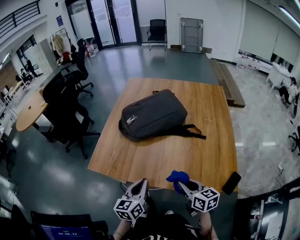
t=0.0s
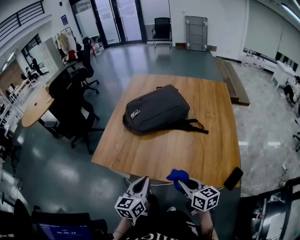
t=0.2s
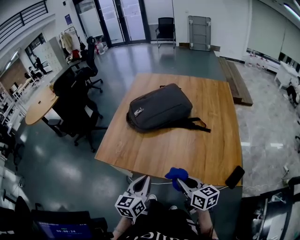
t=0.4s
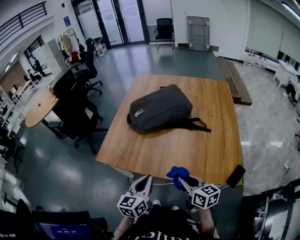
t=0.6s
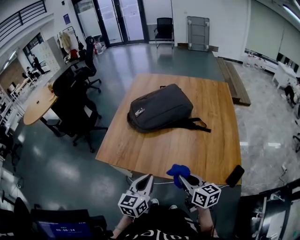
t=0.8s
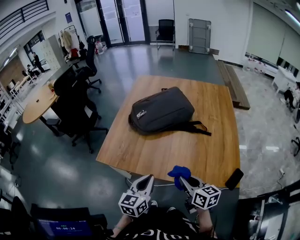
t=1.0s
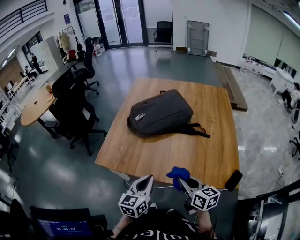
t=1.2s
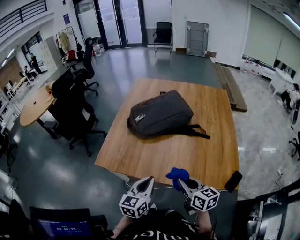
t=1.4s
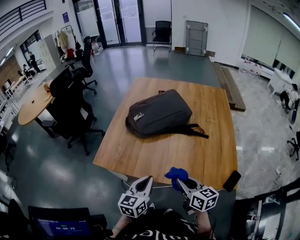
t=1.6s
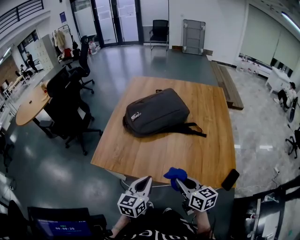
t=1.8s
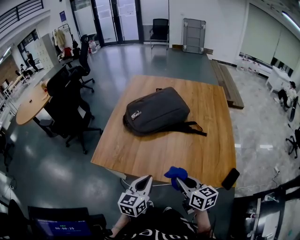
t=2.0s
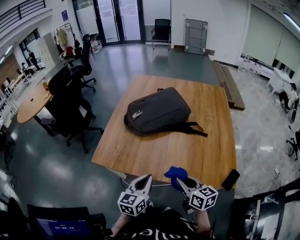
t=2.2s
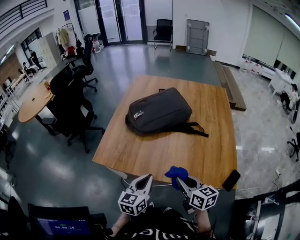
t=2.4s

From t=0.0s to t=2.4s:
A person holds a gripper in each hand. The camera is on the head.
From t=0.0s to t=1.2s: The right gripper changes place by roughly 5 cm.
From t=1.2s to t=2.4s: There are only small adjustments of the grippers.

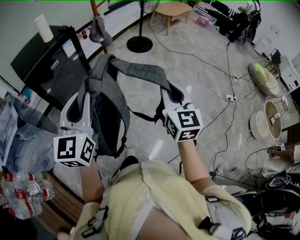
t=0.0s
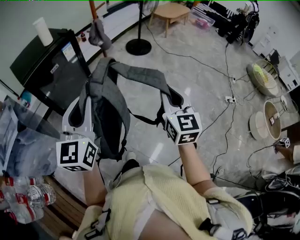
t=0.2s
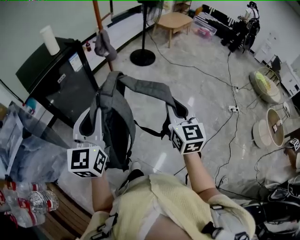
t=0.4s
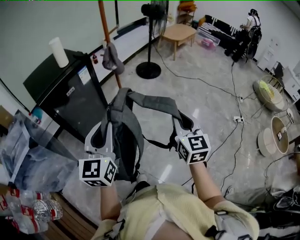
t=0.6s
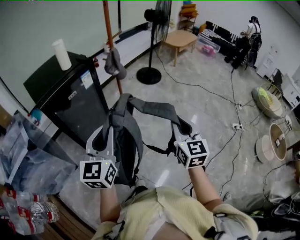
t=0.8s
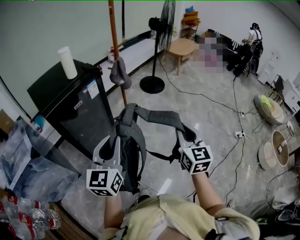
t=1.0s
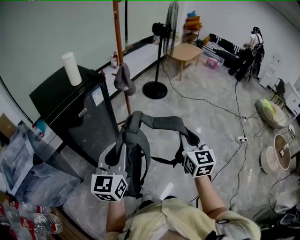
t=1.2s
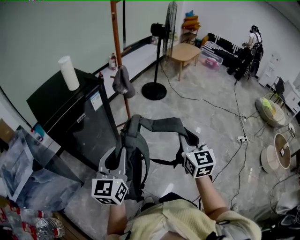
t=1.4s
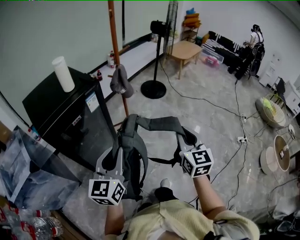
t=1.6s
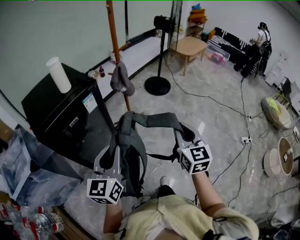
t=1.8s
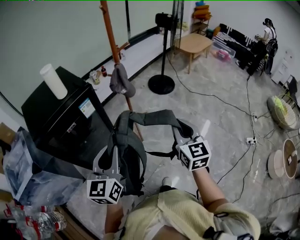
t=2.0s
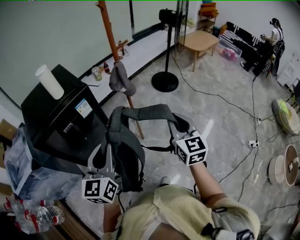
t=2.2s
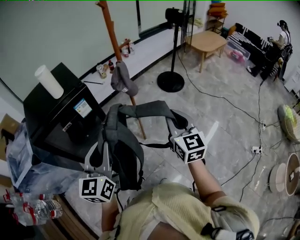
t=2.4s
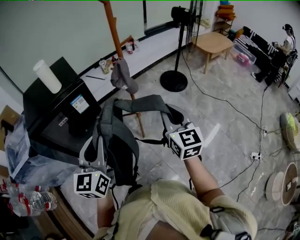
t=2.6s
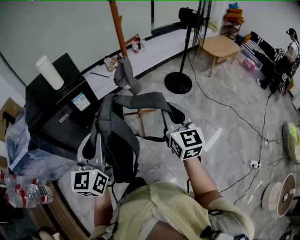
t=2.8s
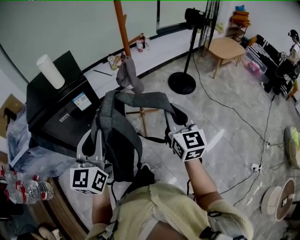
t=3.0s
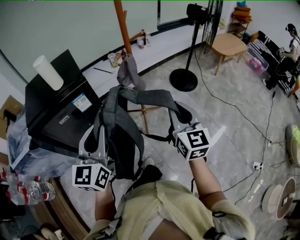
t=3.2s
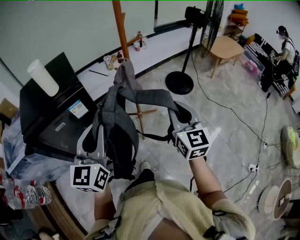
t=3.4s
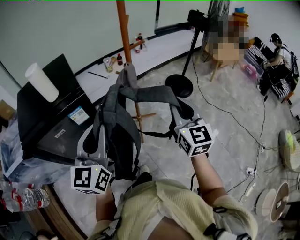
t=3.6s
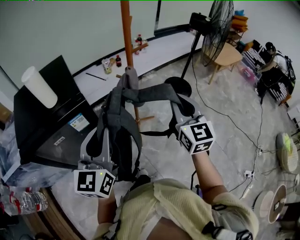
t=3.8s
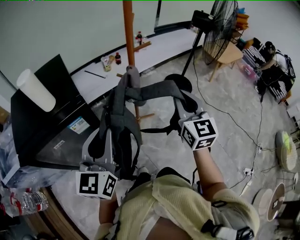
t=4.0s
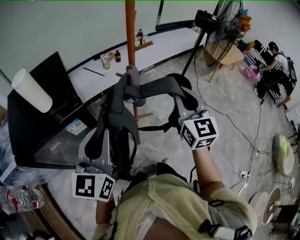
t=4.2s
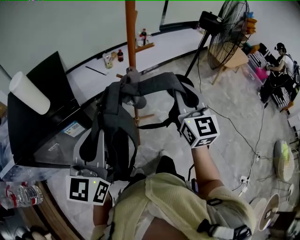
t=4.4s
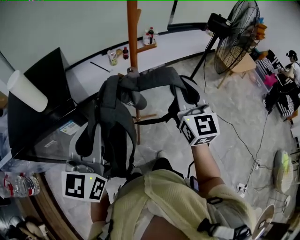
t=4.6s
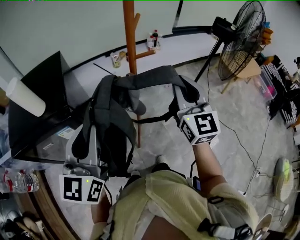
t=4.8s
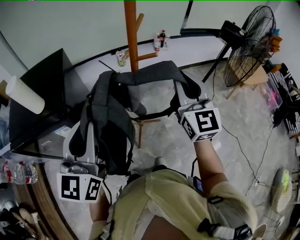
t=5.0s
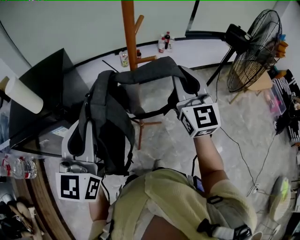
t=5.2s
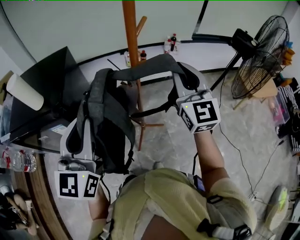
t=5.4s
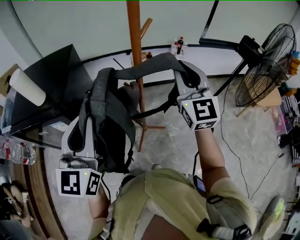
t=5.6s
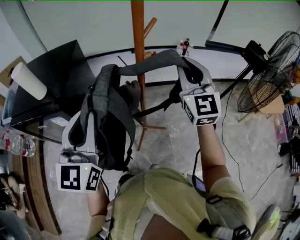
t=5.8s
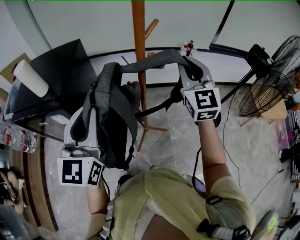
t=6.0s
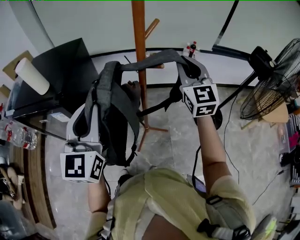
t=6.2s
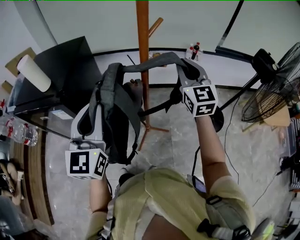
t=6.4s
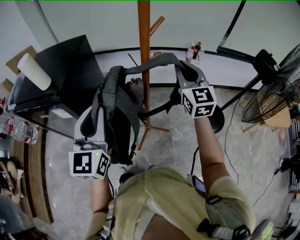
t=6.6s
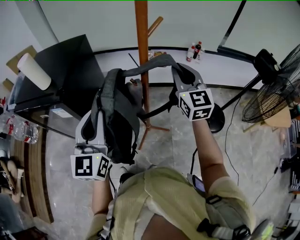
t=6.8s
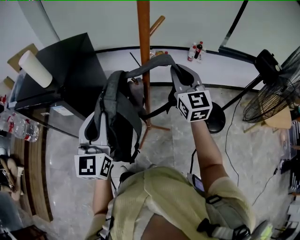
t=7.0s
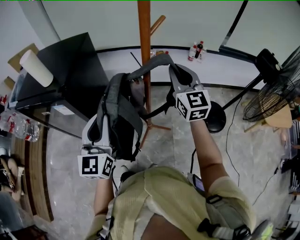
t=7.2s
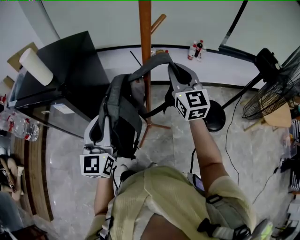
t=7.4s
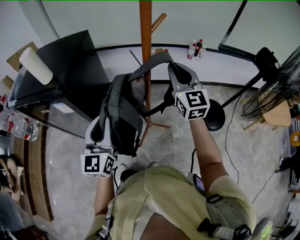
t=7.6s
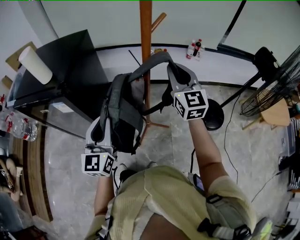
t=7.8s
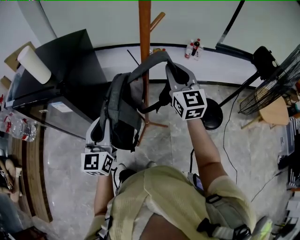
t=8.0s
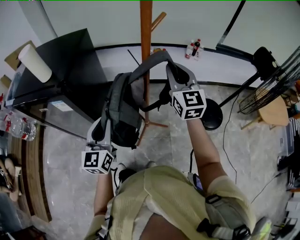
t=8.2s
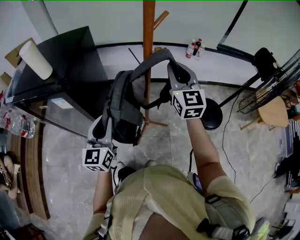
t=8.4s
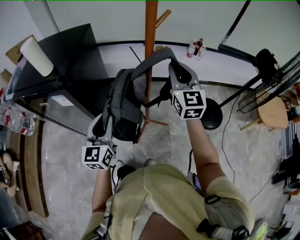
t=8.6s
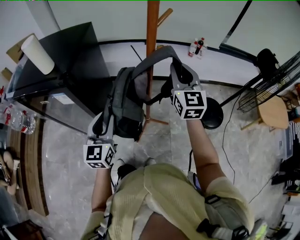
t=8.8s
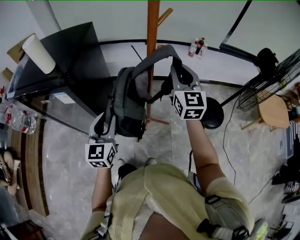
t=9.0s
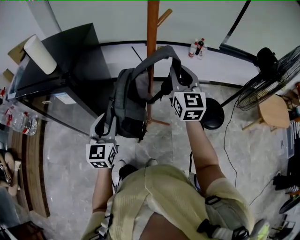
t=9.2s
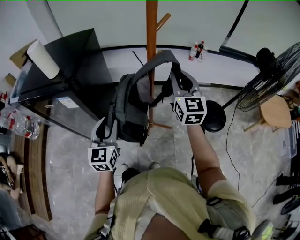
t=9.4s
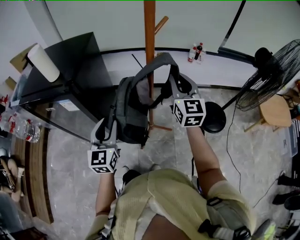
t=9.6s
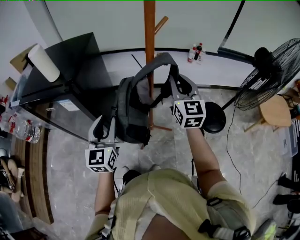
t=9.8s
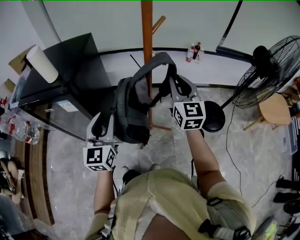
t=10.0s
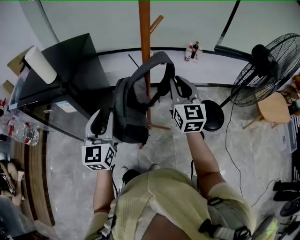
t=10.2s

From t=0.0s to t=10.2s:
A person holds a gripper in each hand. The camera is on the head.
From t=0.0s to t=1.4s: The left gripper heads forward, to the left and downward, covering some 15 cm; the right gripper shifts approximately 15 cm forward and to the left.
From t=1.4s to t=3.0s: The right gripper ends up approximately 25 cm from where it was, and turns by about 30 degrees. Meanwhile the left gripper changes place by some 15 cm, and changes its angle by some 30 degrees.
From t=3.0s to t=4.4s: Both grippers move forward, approximately 20 cm.
From t=4.4s to t=5.8s: The left gripper changes place by approximately 10 cm, and swivels some 30 degrees. Meanwhile the right gripper moves about 20 cm, and swivels approximately 30 degrees.
From t=5.8s to t=7.2s: The grippers both shift downward by approximately 10 cm.
From t=7.2s to t=8.8s: The left gripper heads downward, covering approximately 10 cm.
From t=8.8s to t=10.2s: The left gripper moves upward, about 5 cm.

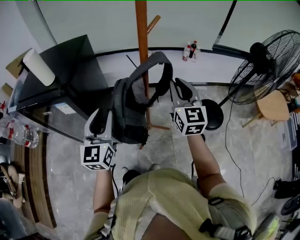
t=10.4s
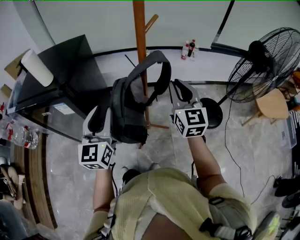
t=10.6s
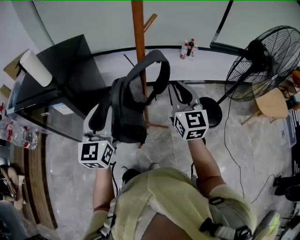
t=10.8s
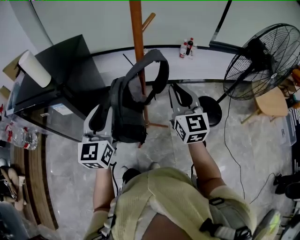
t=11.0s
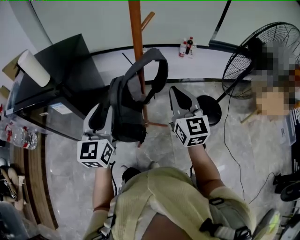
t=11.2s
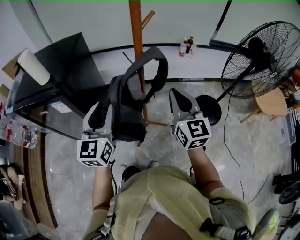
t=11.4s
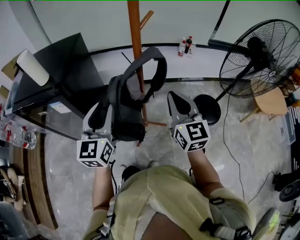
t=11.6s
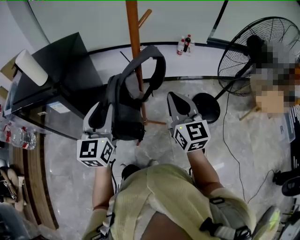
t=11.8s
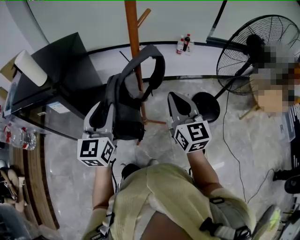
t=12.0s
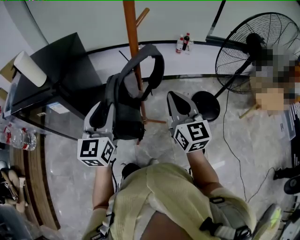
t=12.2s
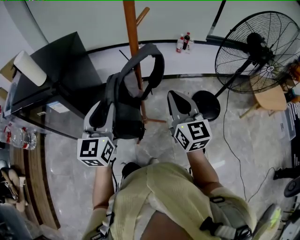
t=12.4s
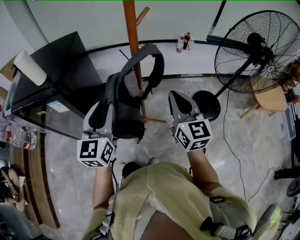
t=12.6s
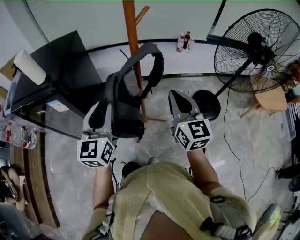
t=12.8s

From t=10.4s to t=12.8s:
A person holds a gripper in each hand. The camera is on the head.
From t=10.4s to t=11.6s: The right gripper shifts some 5 cm backward.
From t=11.6s to t=12.8s: The grippers make only small movements.

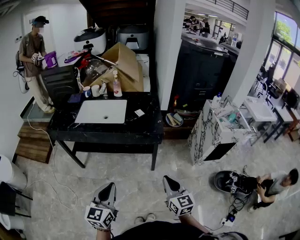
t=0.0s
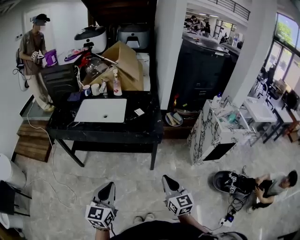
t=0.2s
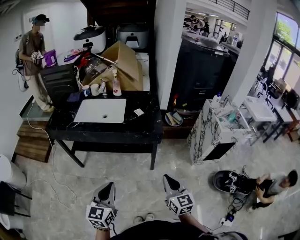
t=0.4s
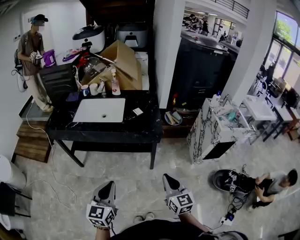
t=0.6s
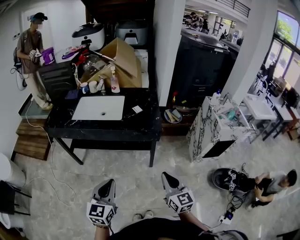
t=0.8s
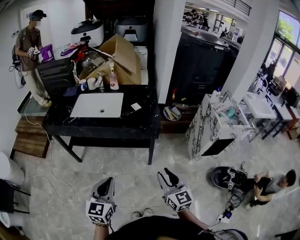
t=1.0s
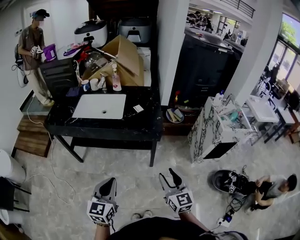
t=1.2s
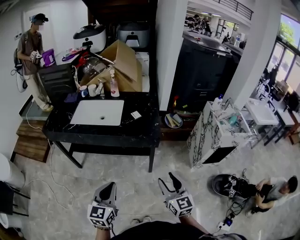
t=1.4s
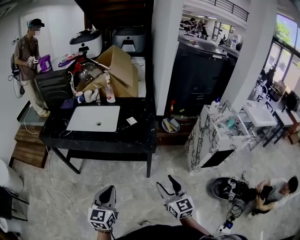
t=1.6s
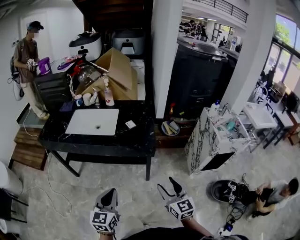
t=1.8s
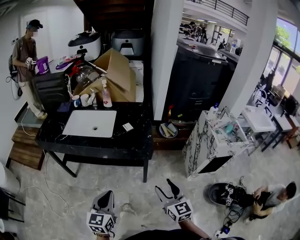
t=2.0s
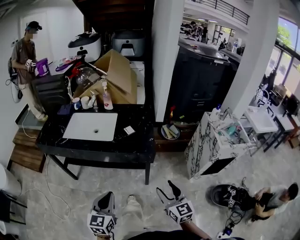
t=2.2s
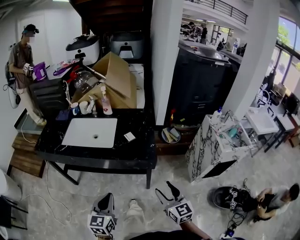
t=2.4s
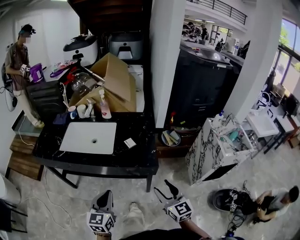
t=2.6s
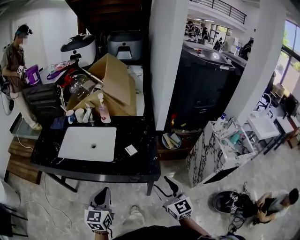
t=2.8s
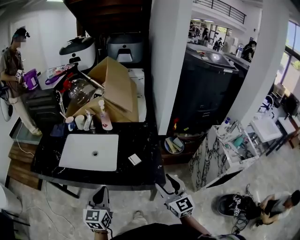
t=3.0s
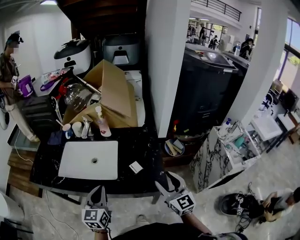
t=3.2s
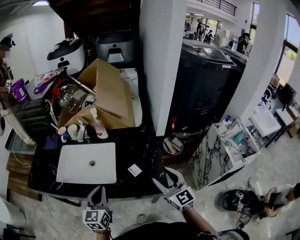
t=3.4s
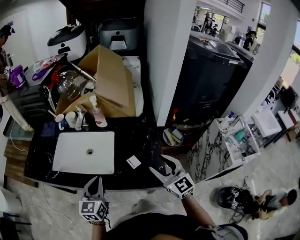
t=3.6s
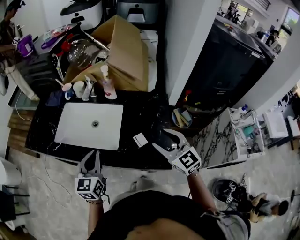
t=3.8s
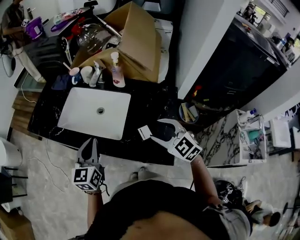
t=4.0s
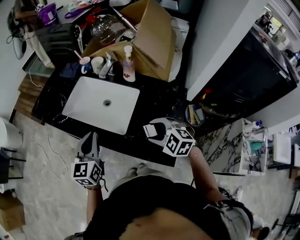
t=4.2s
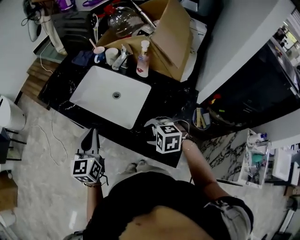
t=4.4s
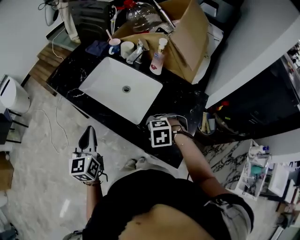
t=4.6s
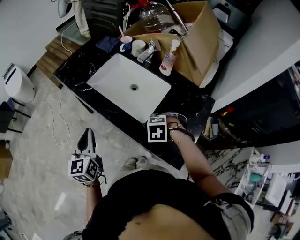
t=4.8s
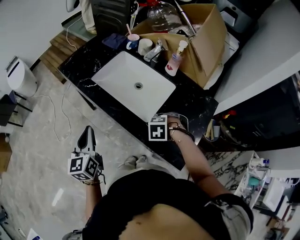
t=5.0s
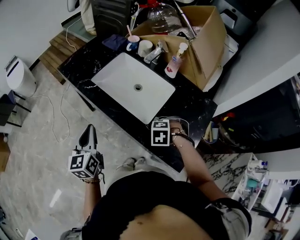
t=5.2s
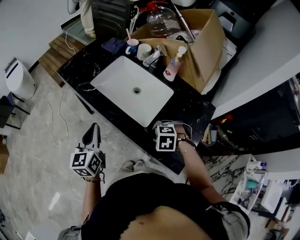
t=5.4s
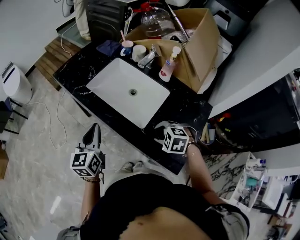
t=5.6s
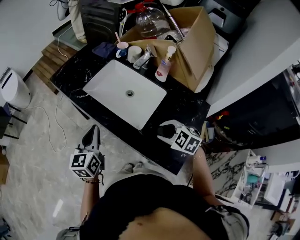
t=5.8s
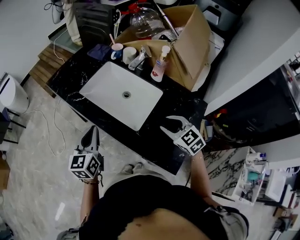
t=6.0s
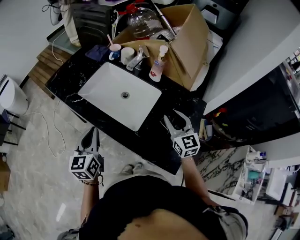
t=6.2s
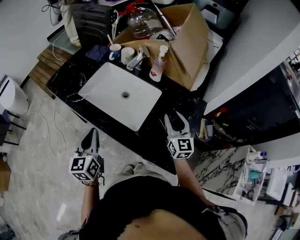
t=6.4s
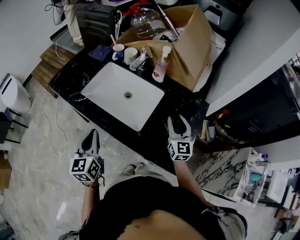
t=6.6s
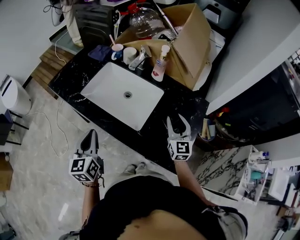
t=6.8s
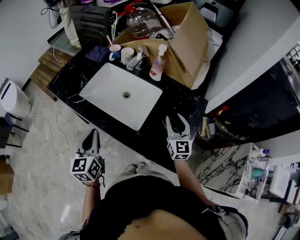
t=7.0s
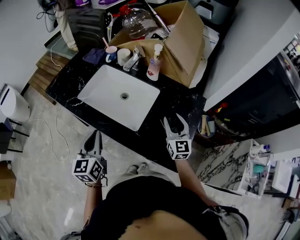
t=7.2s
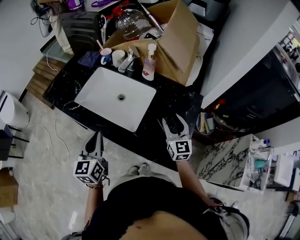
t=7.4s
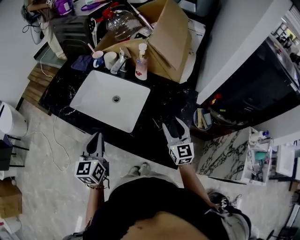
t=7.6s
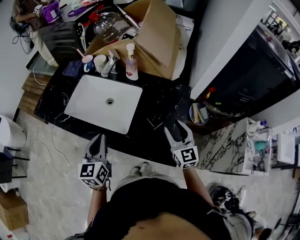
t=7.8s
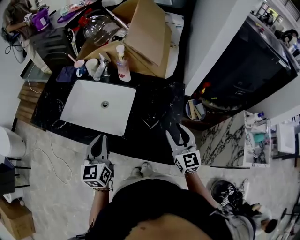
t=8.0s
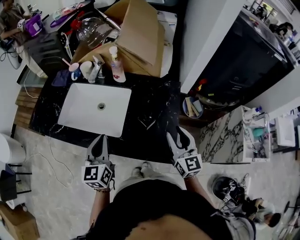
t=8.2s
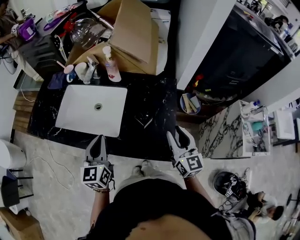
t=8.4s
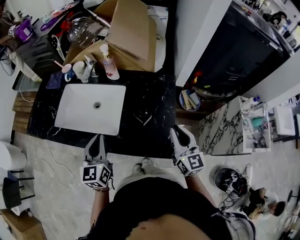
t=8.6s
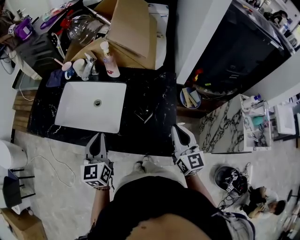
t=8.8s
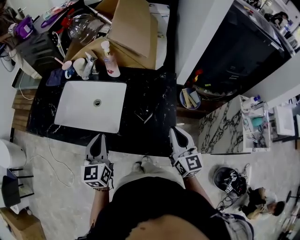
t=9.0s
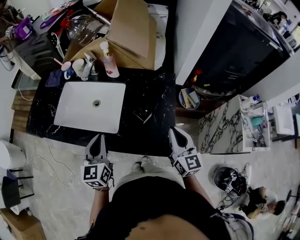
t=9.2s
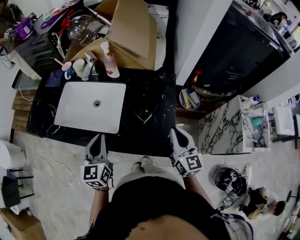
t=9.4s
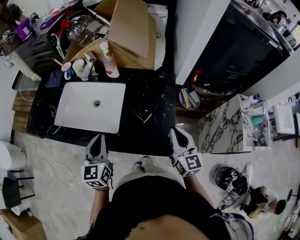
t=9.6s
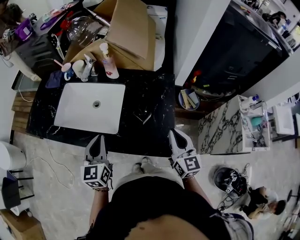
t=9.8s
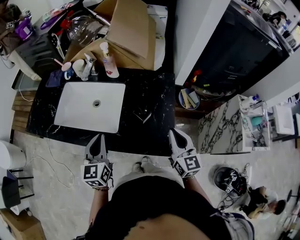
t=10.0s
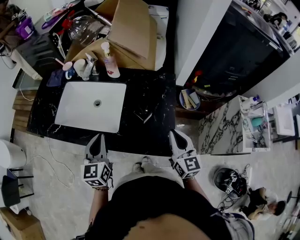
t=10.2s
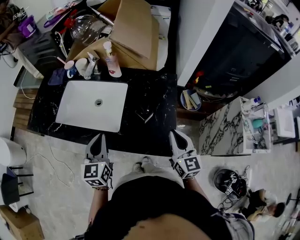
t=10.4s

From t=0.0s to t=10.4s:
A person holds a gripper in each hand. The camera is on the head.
From t=0.0s to t=1.4s: The left gripper shifts by approximately 5 cm, while the right gripper opens.
From t=1.4s to t=3.0s: Both grippers move forward, roughly 30 cm.
From t=3.0s to t=4.4s: The left gripper changes place by some 10 cm, and swivels about 30 degrees; the right gripper shifts by some 20 cm, and tips its fingers downward by roughly 60 degrees.
From t=4.4s to t=6.0s: The right gripper shifts by some 10 cm, and swivels roughly 40 degrees.
From t=6.0s to t=7.4s: The right gripper goes some 5 cm to the right, and turns by roughly 50 degrees.
From t=7.4s to t=9.0s: The right gripper shifts approximately 15 cm backward and to the right, and closes up. Meanwhile the left gripper goes some 10 cm to the right.
From t=9.0s to t=10.4s: The grippers stay close to where they were, moving slightly.
